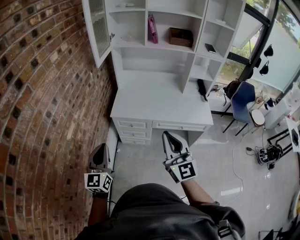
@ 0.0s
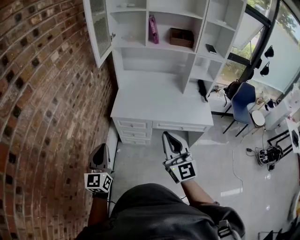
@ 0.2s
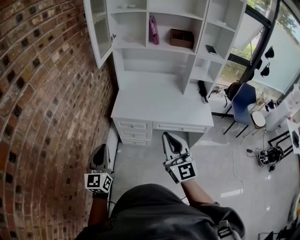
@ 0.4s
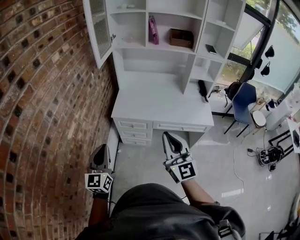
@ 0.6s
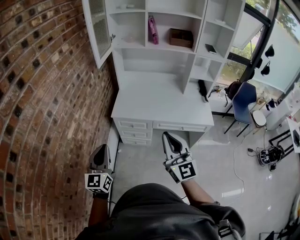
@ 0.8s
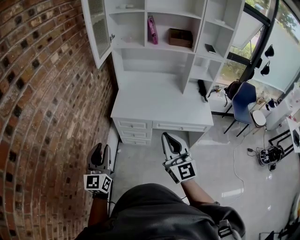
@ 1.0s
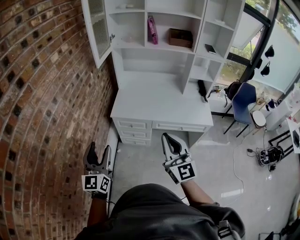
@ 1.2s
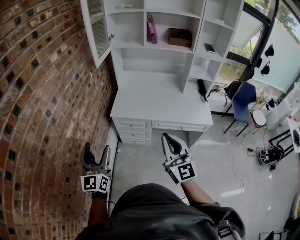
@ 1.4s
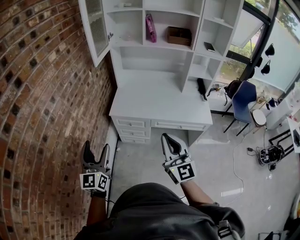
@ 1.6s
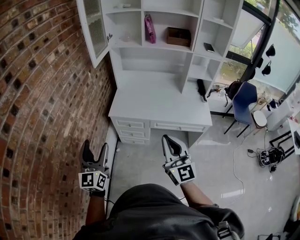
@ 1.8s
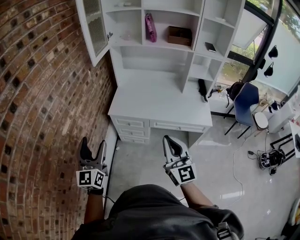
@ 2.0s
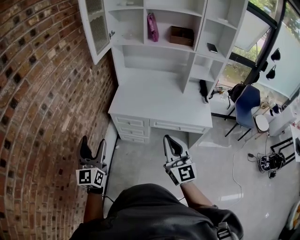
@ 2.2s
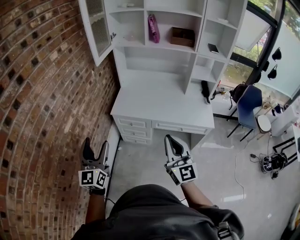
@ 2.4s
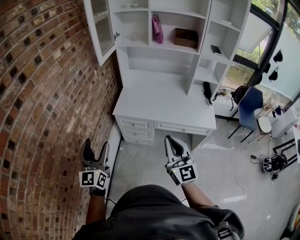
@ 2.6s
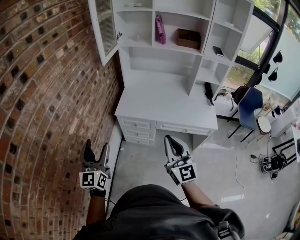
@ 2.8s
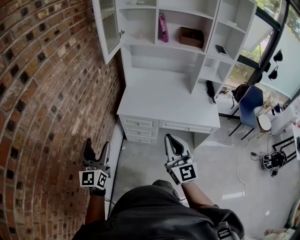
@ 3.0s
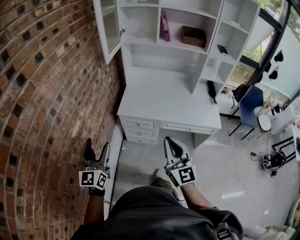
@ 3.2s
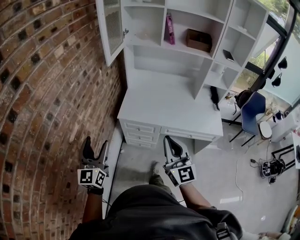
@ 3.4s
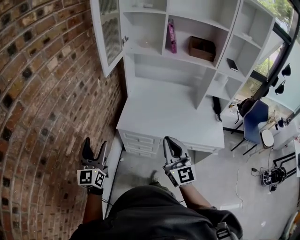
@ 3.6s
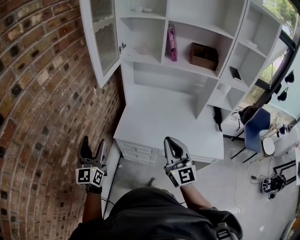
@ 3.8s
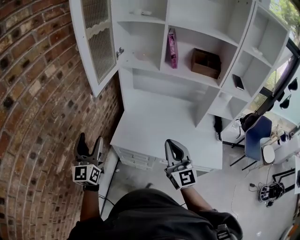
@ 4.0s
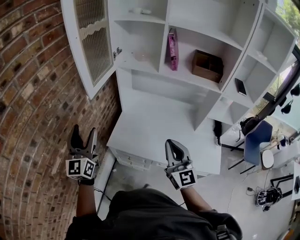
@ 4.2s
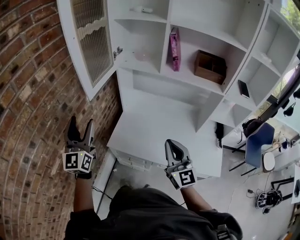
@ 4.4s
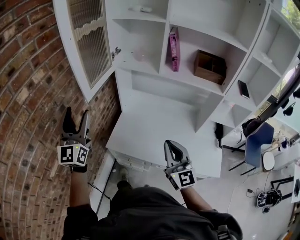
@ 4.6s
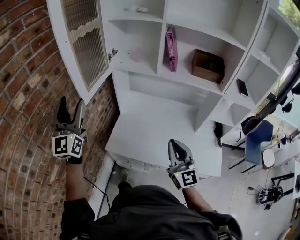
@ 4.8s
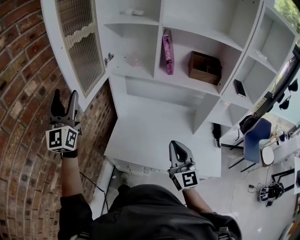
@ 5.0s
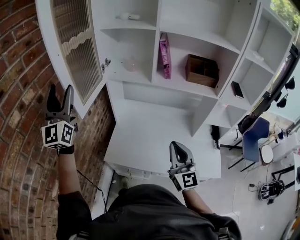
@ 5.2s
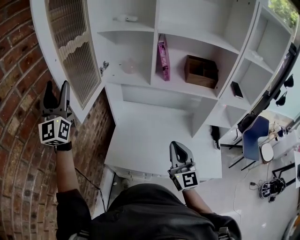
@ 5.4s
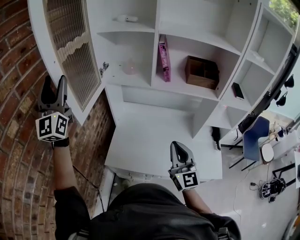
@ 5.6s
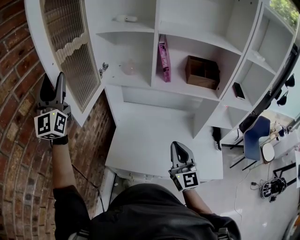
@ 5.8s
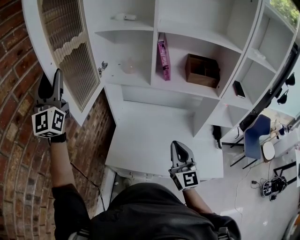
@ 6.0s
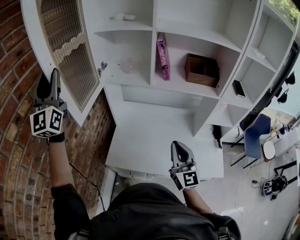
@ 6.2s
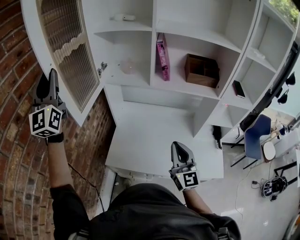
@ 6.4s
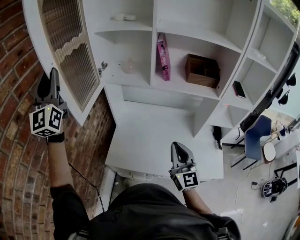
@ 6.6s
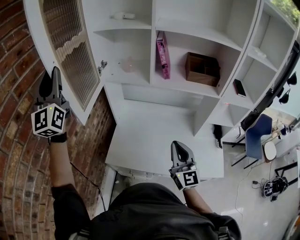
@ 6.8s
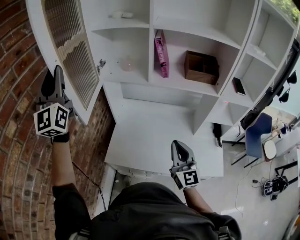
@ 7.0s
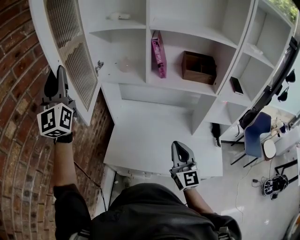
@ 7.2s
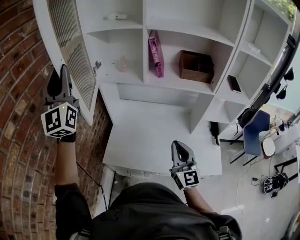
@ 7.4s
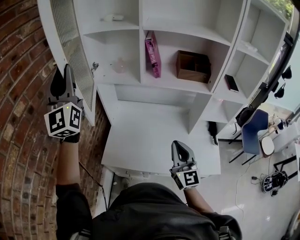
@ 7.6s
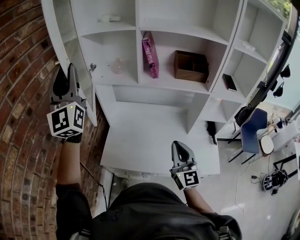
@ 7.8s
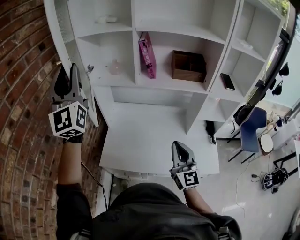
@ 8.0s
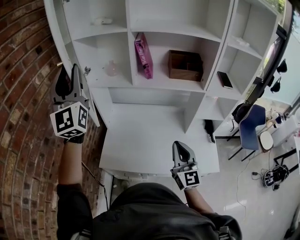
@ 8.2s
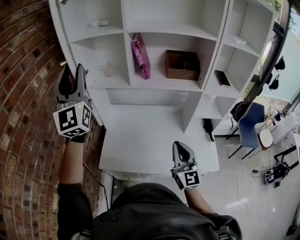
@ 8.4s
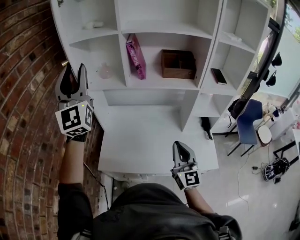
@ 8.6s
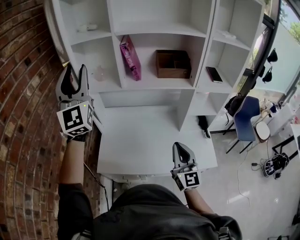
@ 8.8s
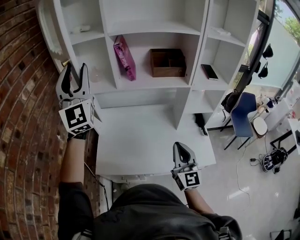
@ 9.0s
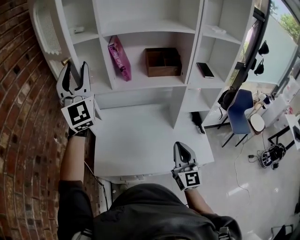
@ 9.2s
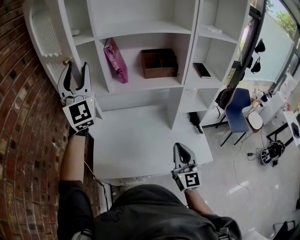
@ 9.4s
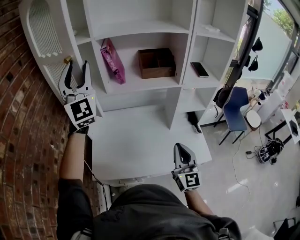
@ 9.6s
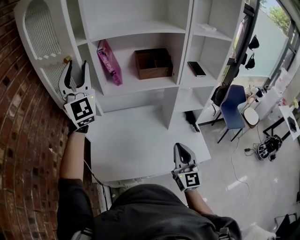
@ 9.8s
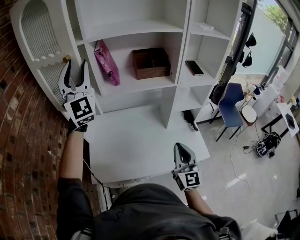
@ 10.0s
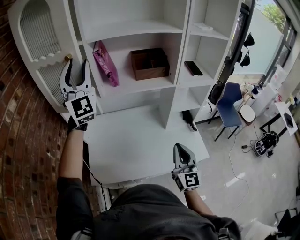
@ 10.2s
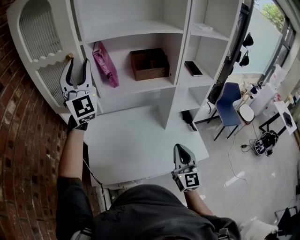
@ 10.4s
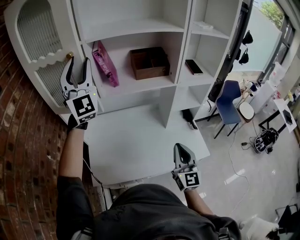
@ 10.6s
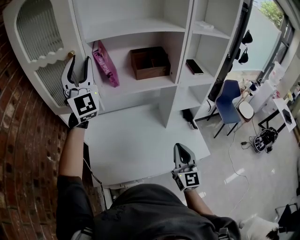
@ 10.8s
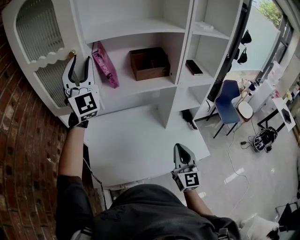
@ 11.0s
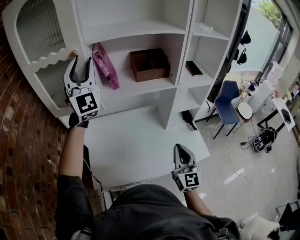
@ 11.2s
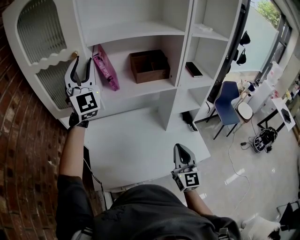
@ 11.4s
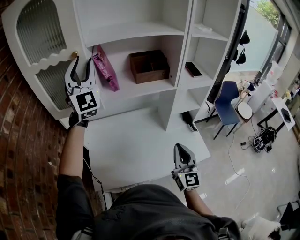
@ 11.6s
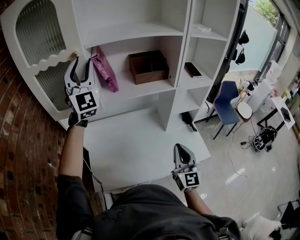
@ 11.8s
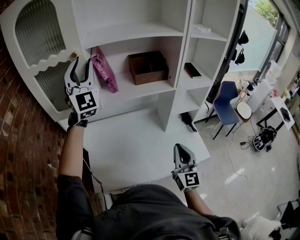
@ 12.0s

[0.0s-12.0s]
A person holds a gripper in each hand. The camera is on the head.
0.0s to 1.6s: The left gripper opens its fingers.
1.6s to 3.0s: The grippers move only a little.
3.0s to 4.4s: The right gripper travels forward and to the right by some 35 cm; the left gripper is displaced forward by roughly 35 cm.
4.4s to 6.0s: The right gripper travels forward by approximately 5 cm; the left gripper heads upward and forward, covering approximately 25 cm, changes its angle by approximately 20 degrees, and closes.
6.0s to 7.6s: The left gripper shifts roughly 10 cm to the right.
7.6s to 9.0s: The left gripper heads to the right, covering approximately 15 cm. Meanwhile the right gripper travels to the right by some 5 cm.
9.0s to 10.4s: The left gripper goes some 10 cm forward and to the right.
10.4s to 12.0s: The left gripper travels forward by about 5 cm.

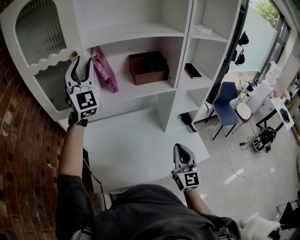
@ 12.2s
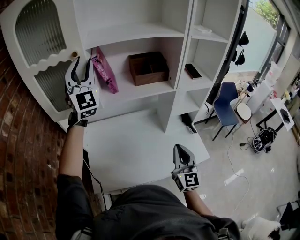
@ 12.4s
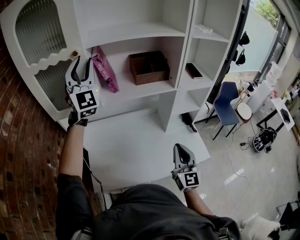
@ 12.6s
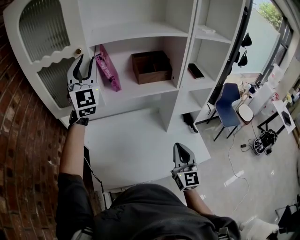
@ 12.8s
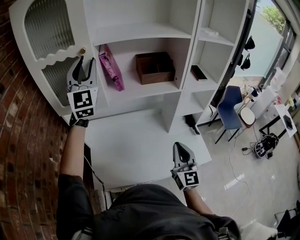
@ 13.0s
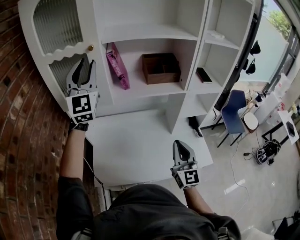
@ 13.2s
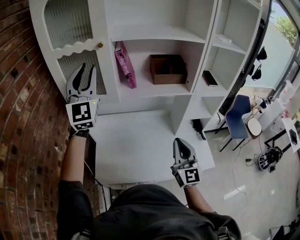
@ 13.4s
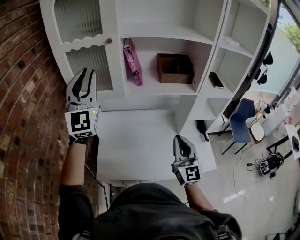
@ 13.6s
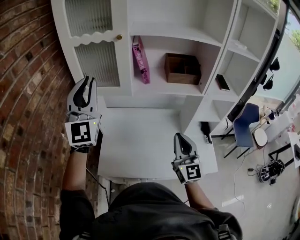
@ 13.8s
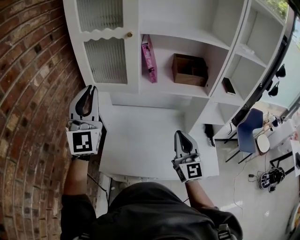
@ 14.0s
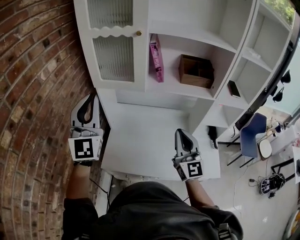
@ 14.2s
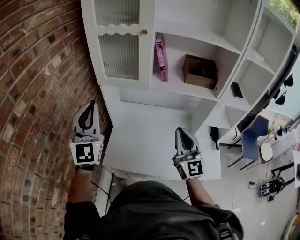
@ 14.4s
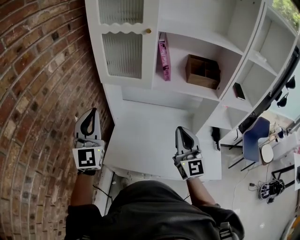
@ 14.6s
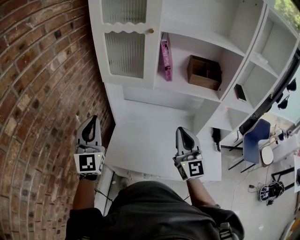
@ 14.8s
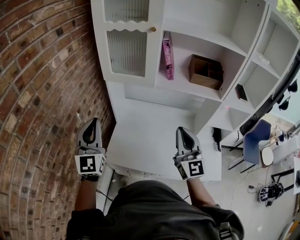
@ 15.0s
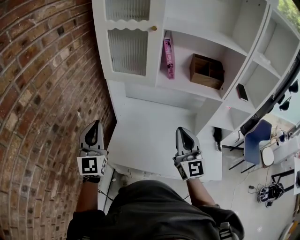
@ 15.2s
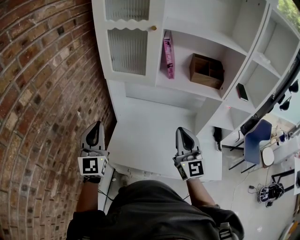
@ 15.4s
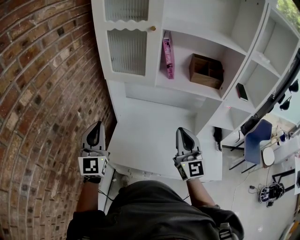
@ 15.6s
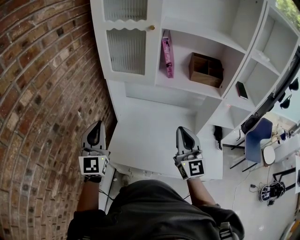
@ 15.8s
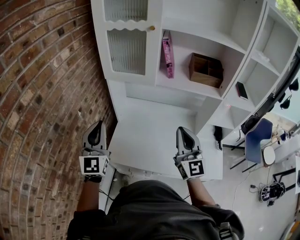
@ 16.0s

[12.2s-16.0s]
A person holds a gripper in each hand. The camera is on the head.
12.2s to 13.4s: The right gripper moves about 5 cm; the left gripper shifts roughly 10 cm backward and to the left.
13.4s to 14.8s: The right gripper moves to the left, some 10 cm. Meanwhile the left gripper is displaced backward, downward and to the left by about 30 cm, and rotates some 20 degrees.
14.8s to 16.0s: There are only small adjustments of the grippers.

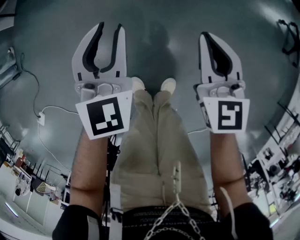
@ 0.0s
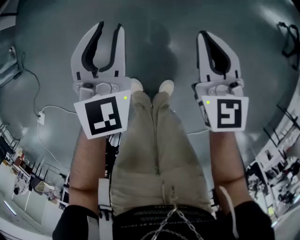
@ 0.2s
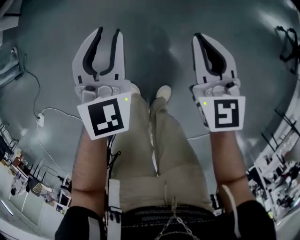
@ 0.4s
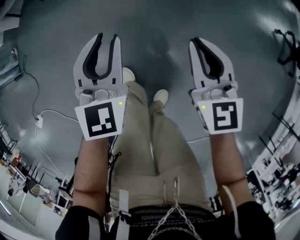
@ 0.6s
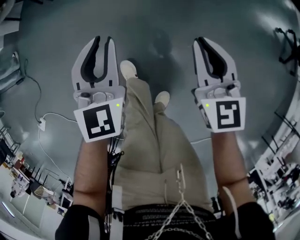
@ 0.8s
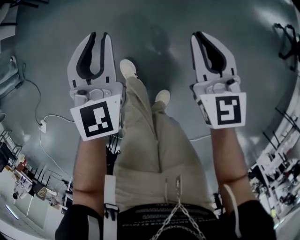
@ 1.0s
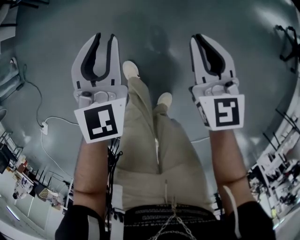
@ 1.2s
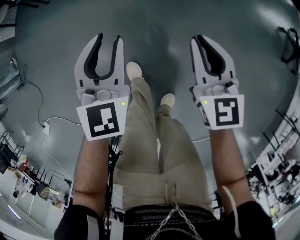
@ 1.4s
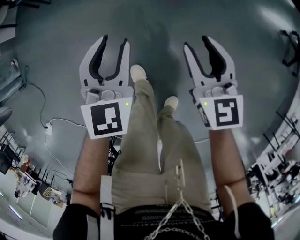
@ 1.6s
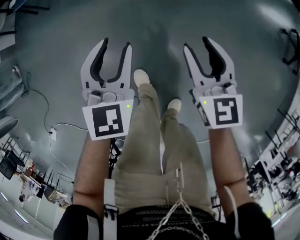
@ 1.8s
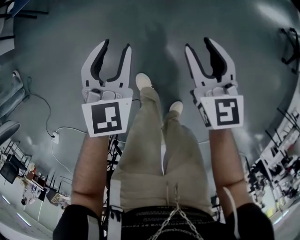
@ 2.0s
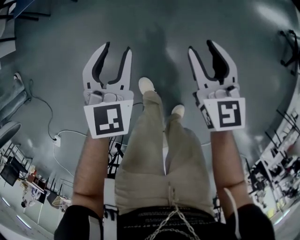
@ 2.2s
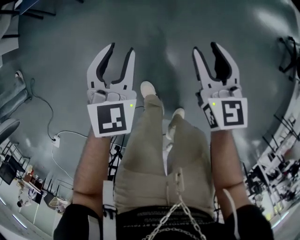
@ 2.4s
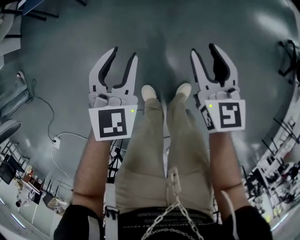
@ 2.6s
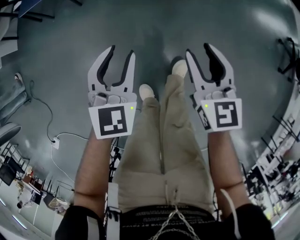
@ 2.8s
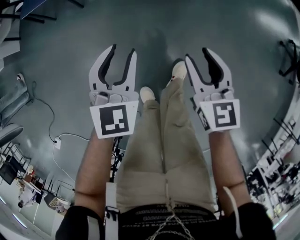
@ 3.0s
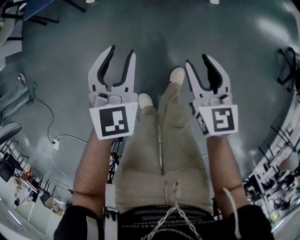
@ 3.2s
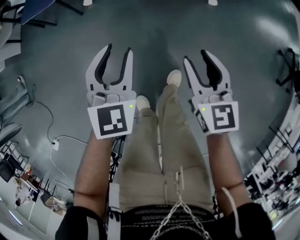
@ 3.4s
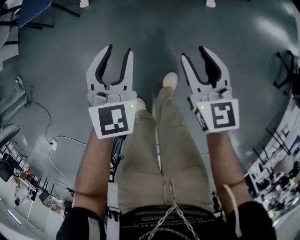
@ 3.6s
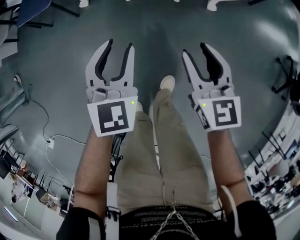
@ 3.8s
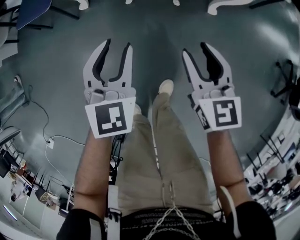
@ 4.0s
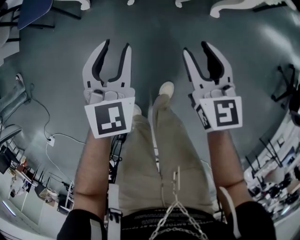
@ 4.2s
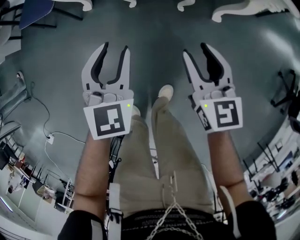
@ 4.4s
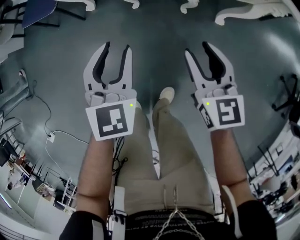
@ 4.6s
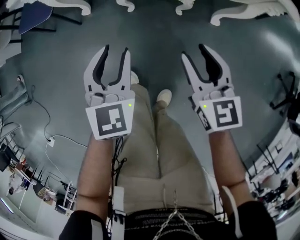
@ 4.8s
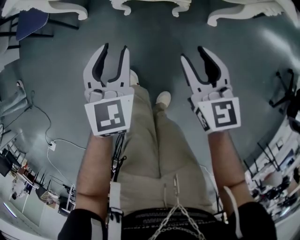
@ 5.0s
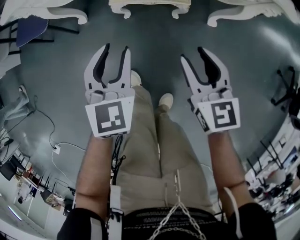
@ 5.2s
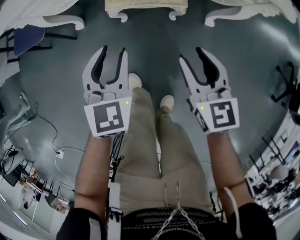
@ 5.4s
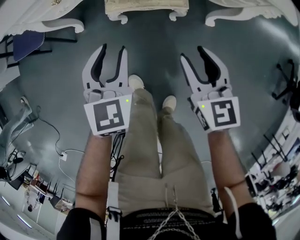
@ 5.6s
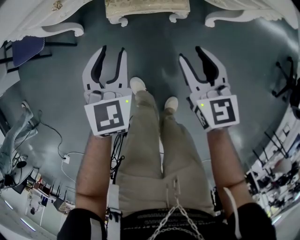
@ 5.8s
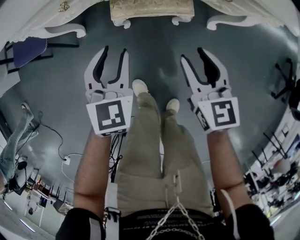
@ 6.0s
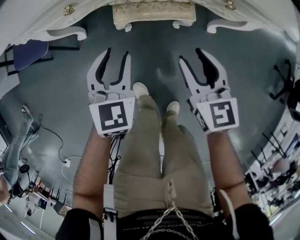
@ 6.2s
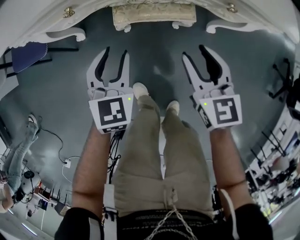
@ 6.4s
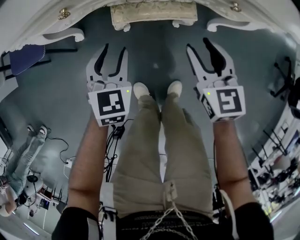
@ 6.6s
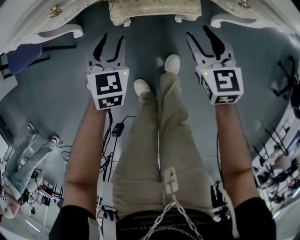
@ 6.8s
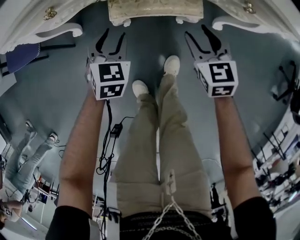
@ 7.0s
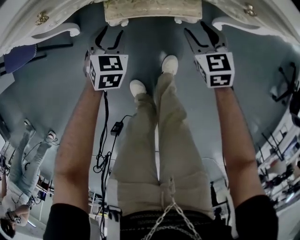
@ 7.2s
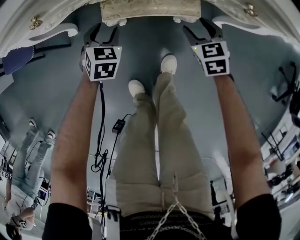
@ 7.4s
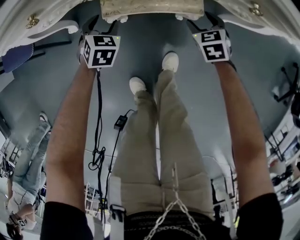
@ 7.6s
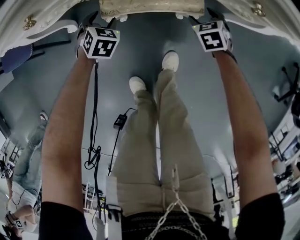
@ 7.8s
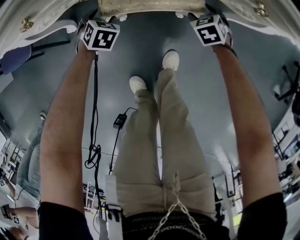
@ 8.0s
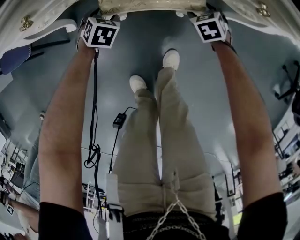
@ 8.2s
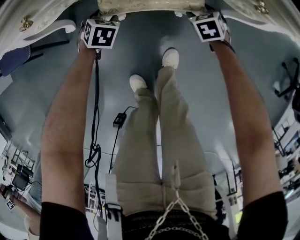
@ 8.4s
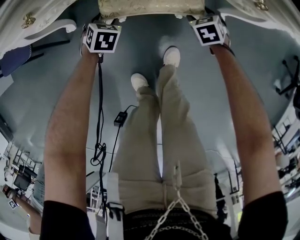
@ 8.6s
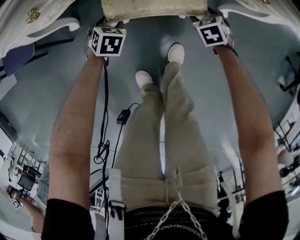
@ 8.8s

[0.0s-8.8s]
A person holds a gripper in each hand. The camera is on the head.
0.0s to 1.4s: The grippers both shift forward by roughly 10 cm.
1.4s to 3.0s: The grippers both shift forward by about 10 cm. The right gripper opens up.
3.0s to 4.4s: The right gripper heads forward, covering some 20 cm, while the left gripper moves forward and to the right, approximately 15 cm.
4.4s to 5.8s: Both grippers travel together forward, roughly 10 cm.
5.8s to 7.4s: Both grippers move downward and forward, some 25 cm. The left gripper swivels approximately 20 degrees, while the right gripper changes its angle by about 30 degrees.
7.4s to 8.8s: Both grippers move downward, about 10 cm.
